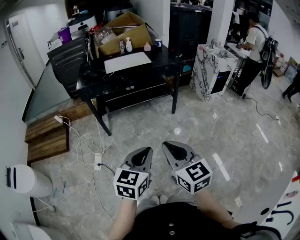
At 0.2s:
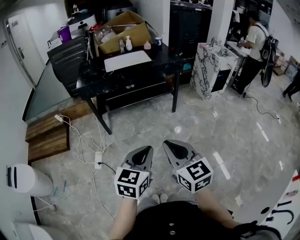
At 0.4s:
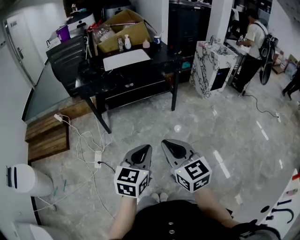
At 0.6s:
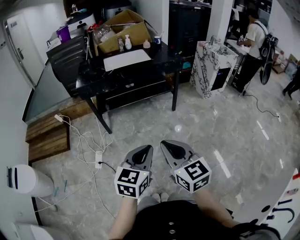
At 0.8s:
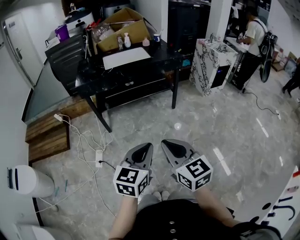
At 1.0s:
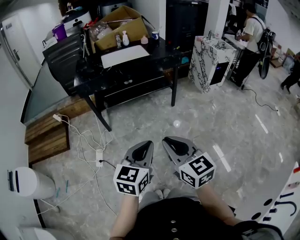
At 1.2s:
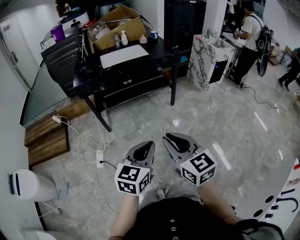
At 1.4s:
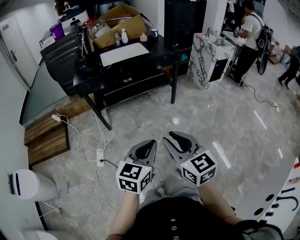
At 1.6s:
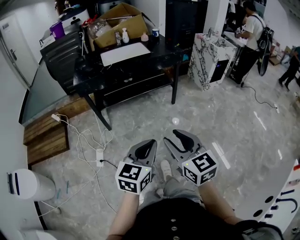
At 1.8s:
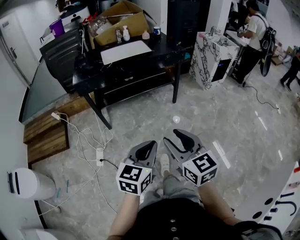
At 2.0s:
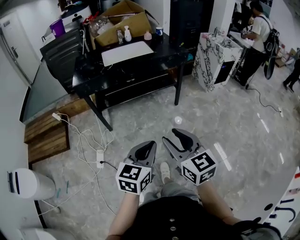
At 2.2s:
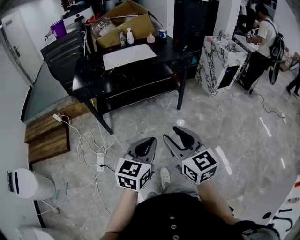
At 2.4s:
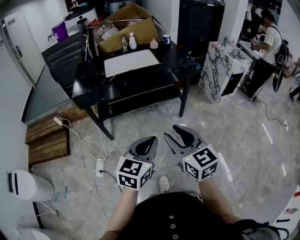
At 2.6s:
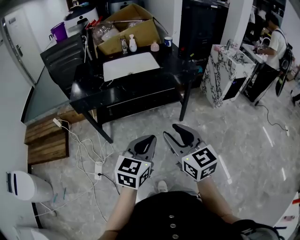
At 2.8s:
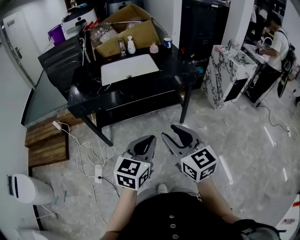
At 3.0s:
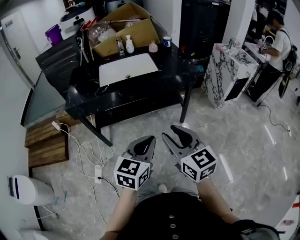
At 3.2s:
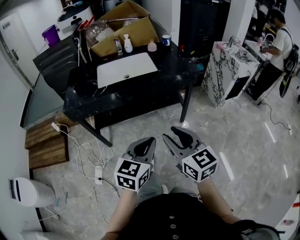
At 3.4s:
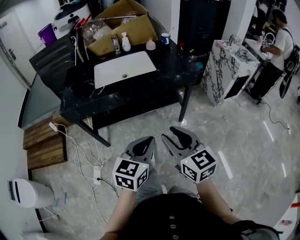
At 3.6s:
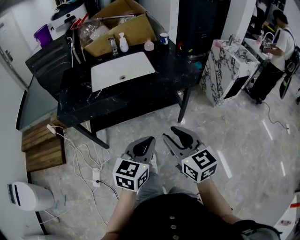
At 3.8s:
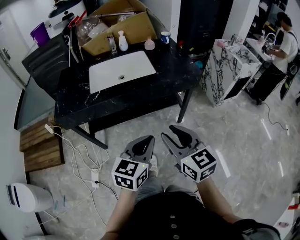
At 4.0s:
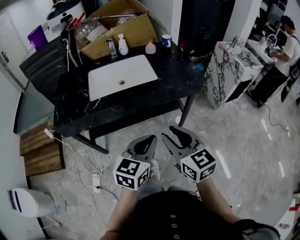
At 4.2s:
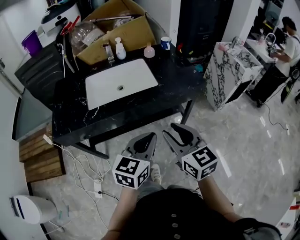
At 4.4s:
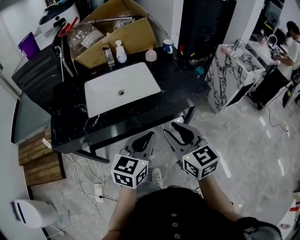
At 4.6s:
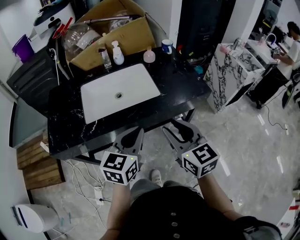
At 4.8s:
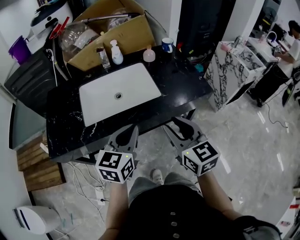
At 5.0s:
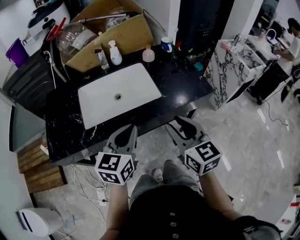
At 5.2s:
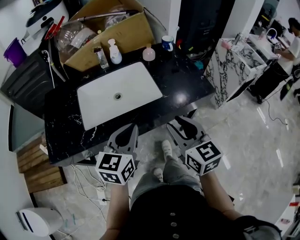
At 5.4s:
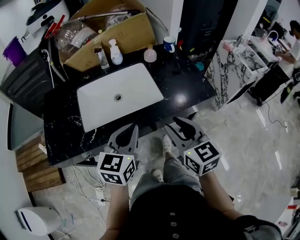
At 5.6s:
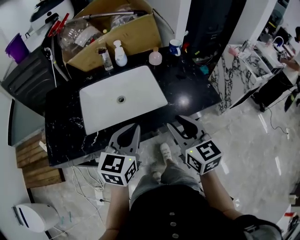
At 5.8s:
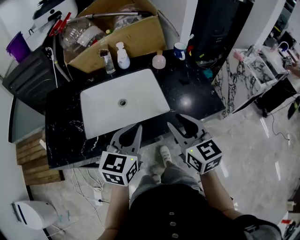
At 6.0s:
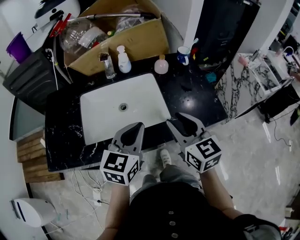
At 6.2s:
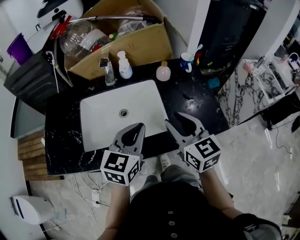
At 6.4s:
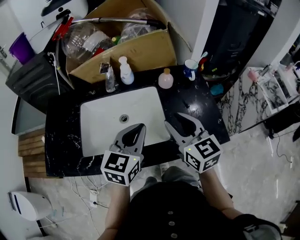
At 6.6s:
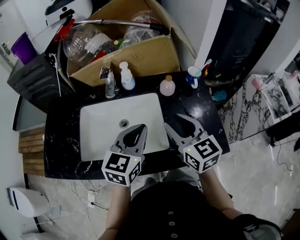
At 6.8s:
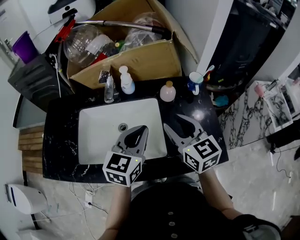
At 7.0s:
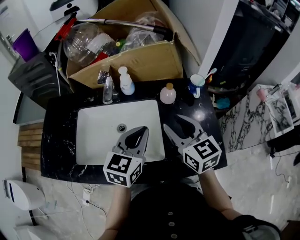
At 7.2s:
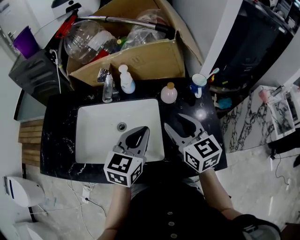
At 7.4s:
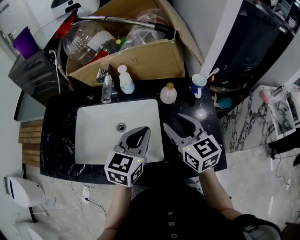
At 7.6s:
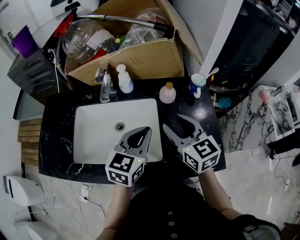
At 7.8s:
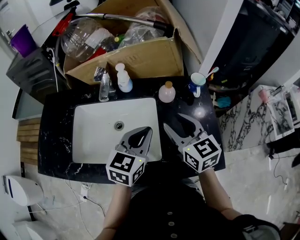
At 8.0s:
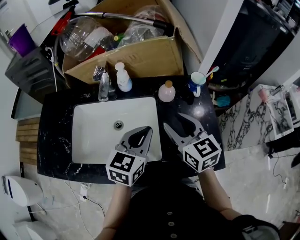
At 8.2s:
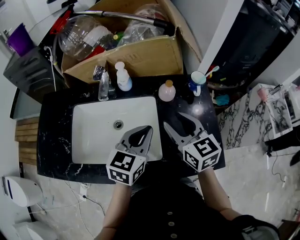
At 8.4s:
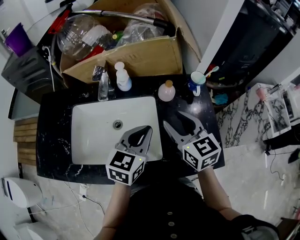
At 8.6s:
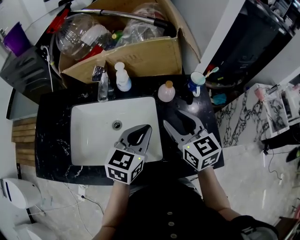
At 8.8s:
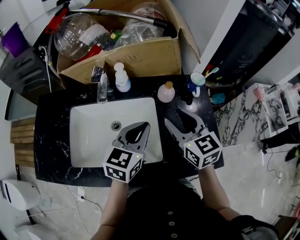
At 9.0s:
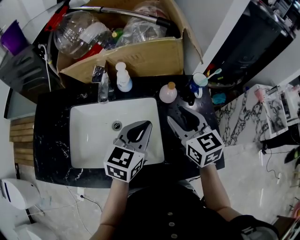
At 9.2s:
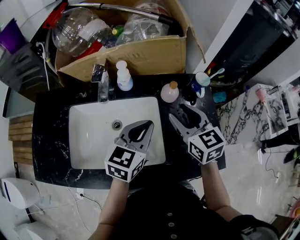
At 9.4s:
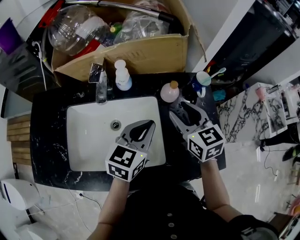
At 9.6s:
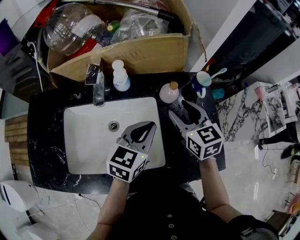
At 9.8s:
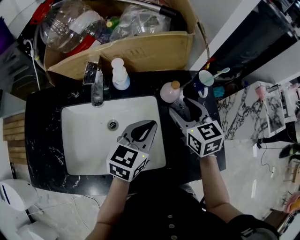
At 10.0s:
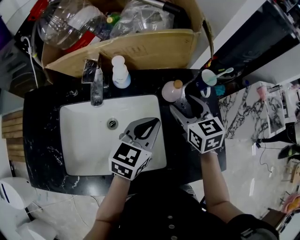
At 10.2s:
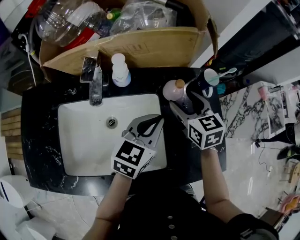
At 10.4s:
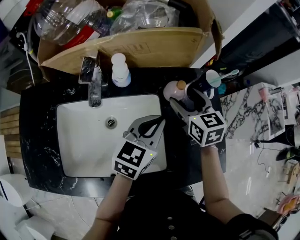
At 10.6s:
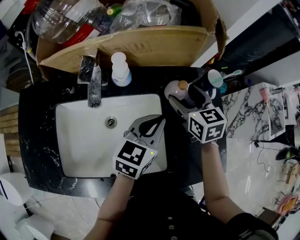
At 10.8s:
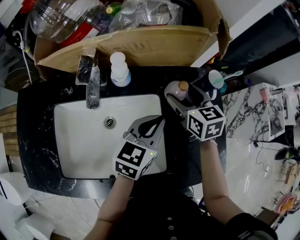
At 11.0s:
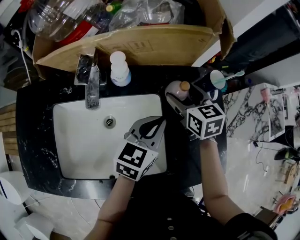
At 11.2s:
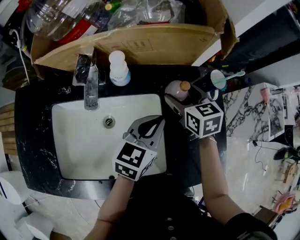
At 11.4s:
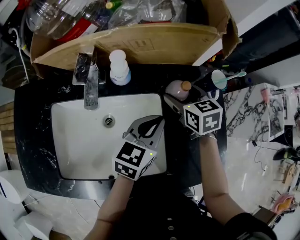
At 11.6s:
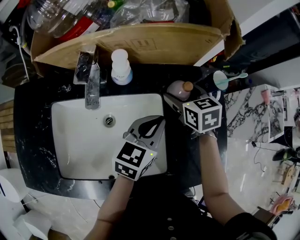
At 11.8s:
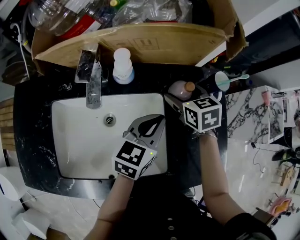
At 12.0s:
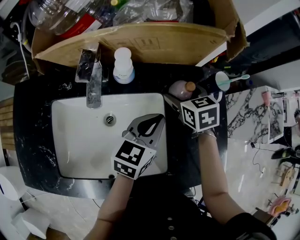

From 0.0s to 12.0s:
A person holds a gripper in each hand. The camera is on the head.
From 0.0s to 1.6s: The right gripper opens its fingers.
From 1.6s to 3.0s: The grippers both shift forward by approximately 30 cm.
From 3.0s to 4.4s: Both grippers travel together forward, some 25 cm.
From 4.4s to 6.0s: Both grippers move forward, about 20 cm.
From 6.0s to 7.6s: The right gripper travels forward by some 20 cm. The left gripper goes some 15 cm forward and to the right.
From 7.6s to 9.0s: The grippers move only a little.
From 9.0s to 10.4s: The right gripper travels forward and downward by some 15 cm, and opens up; the left gripper is displaced forward and downward by approximately 5 cm.
From 10.4s to 12.0s: The right gripper shifts about 5 cm downward.

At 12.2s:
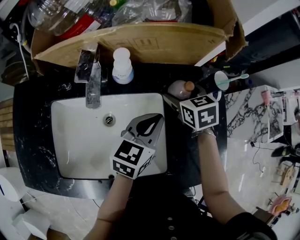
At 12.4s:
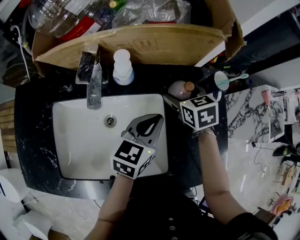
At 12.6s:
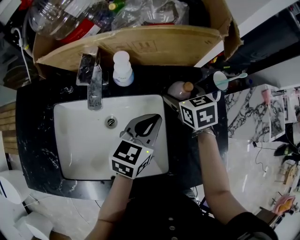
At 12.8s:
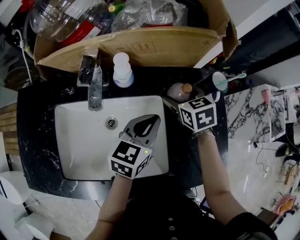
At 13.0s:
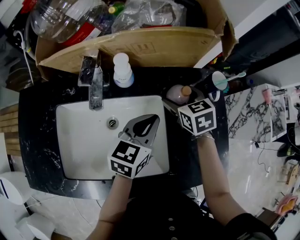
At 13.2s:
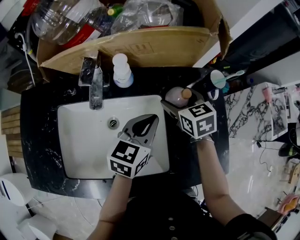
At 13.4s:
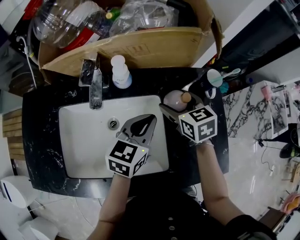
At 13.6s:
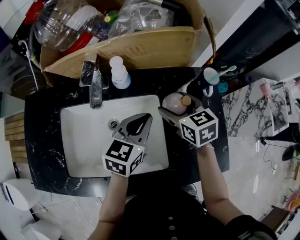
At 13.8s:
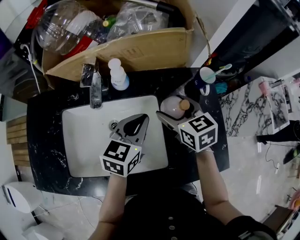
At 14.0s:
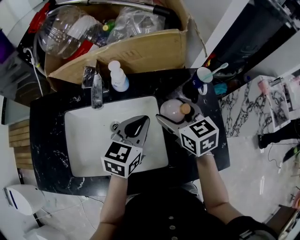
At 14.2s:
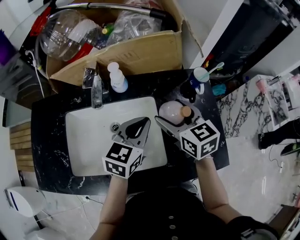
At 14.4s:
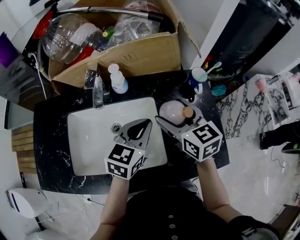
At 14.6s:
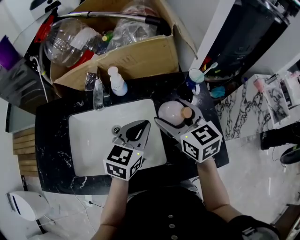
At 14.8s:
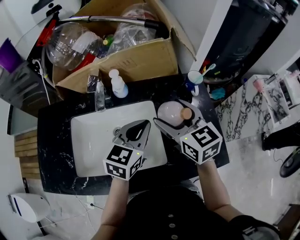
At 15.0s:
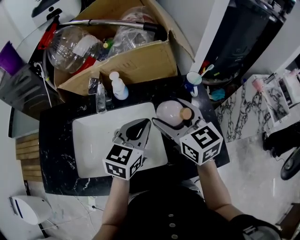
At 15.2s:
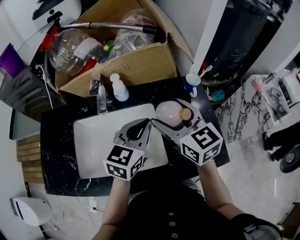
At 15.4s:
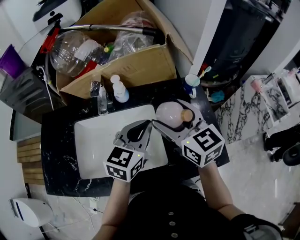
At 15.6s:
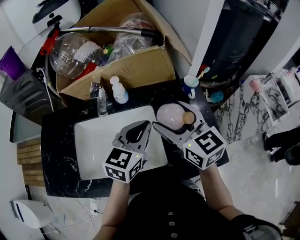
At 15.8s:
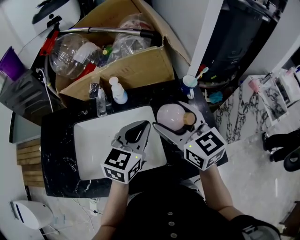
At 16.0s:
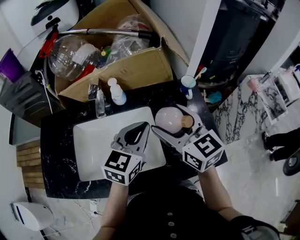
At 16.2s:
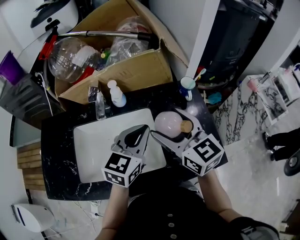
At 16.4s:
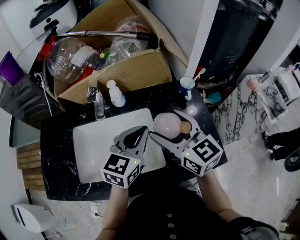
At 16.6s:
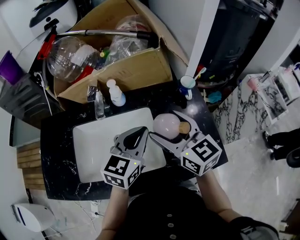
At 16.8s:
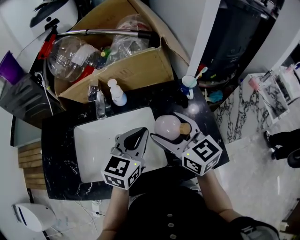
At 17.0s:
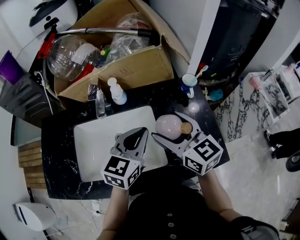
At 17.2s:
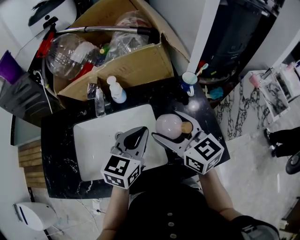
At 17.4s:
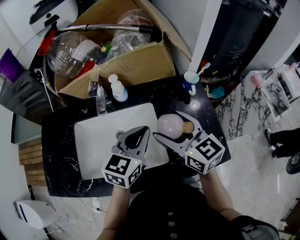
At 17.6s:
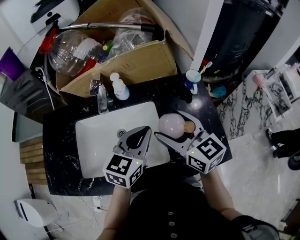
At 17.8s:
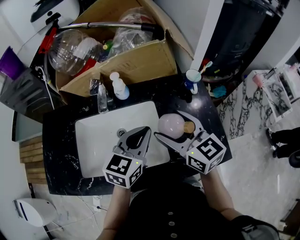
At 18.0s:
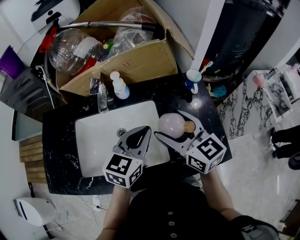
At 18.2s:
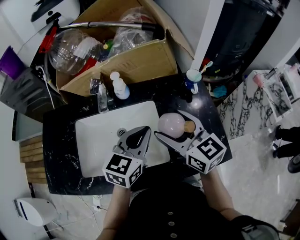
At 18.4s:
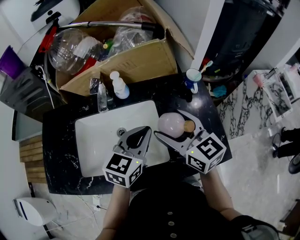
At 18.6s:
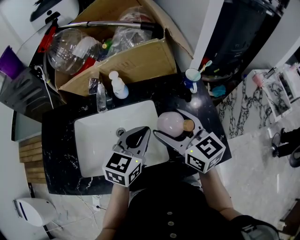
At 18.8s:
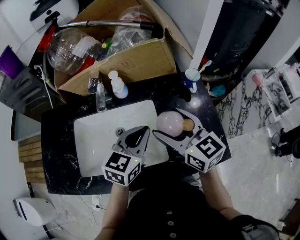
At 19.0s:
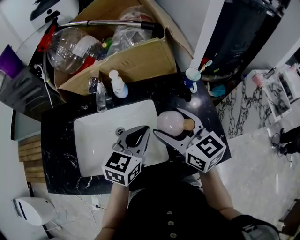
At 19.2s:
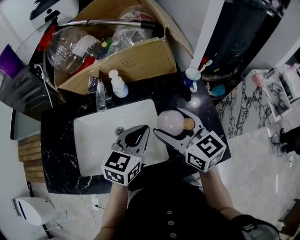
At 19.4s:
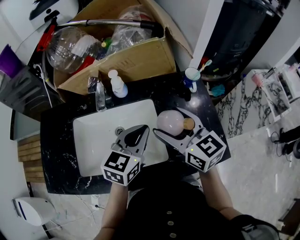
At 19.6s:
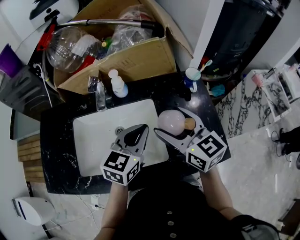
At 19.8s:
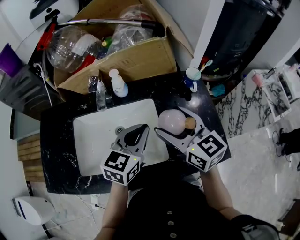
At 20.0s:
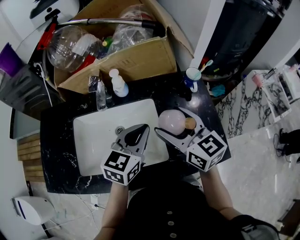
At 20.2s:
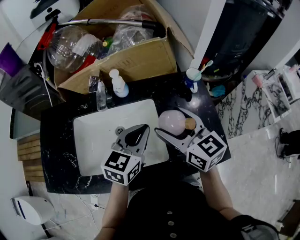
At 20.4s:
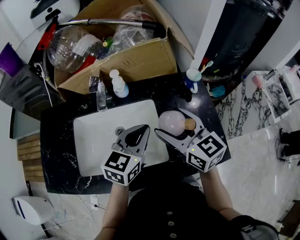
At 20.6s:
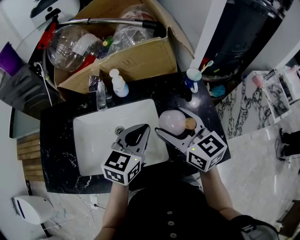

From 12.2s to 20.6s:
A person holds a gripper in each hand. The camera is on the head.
From 12.2s to 13.6s: The right gripper moves backward, roughly 5 cm.
From 13.6s to 15.0s: The left gripper travels upward by about 5 cm. The right gripper moves upward and backward, roughly 15 cm, and changes its angle by roughly 20 degrees.
From 15.0s to 17.8s: The grippers make only small movements.
From 17.8s to 20.6s: Both grippers stay put.

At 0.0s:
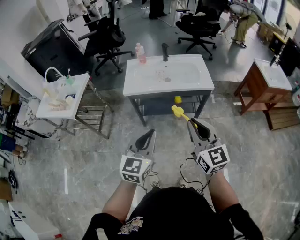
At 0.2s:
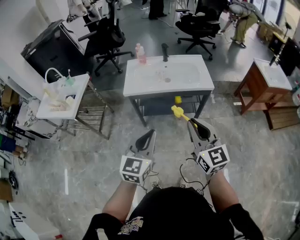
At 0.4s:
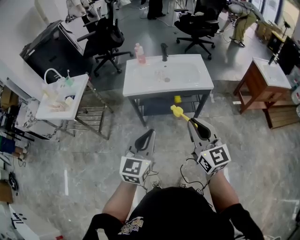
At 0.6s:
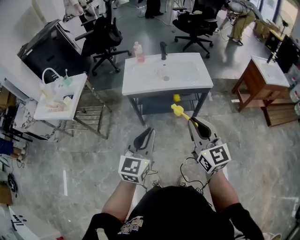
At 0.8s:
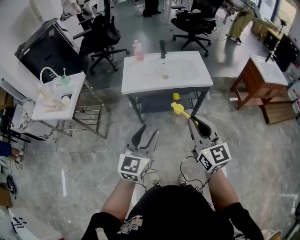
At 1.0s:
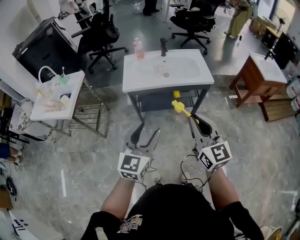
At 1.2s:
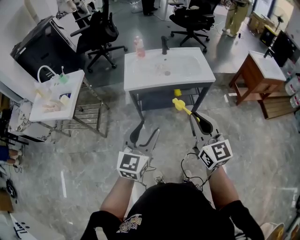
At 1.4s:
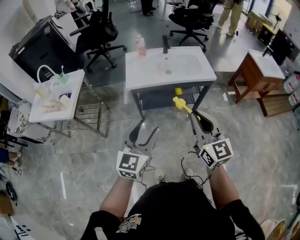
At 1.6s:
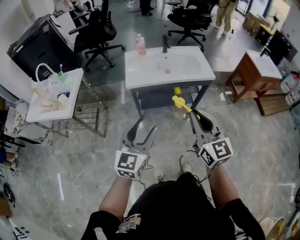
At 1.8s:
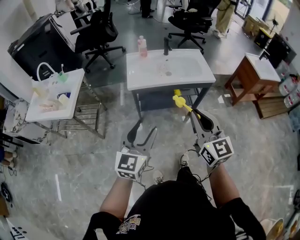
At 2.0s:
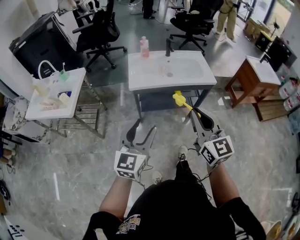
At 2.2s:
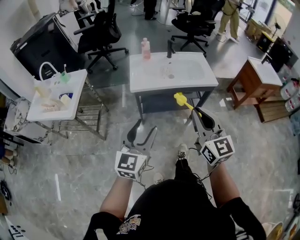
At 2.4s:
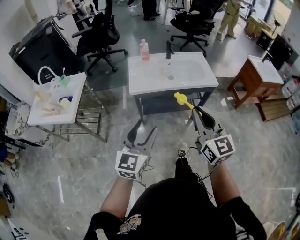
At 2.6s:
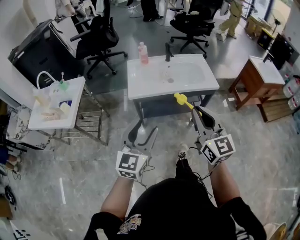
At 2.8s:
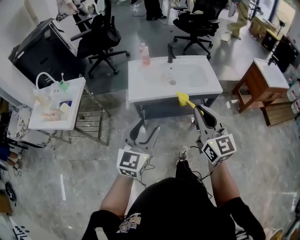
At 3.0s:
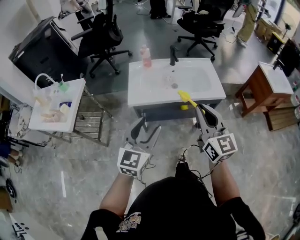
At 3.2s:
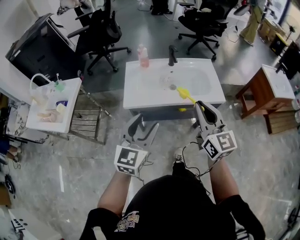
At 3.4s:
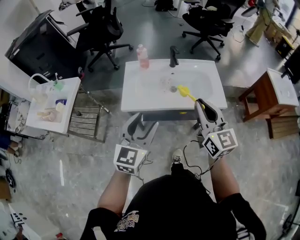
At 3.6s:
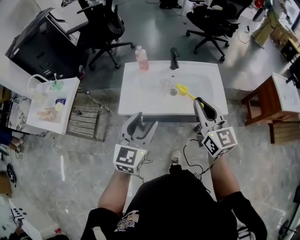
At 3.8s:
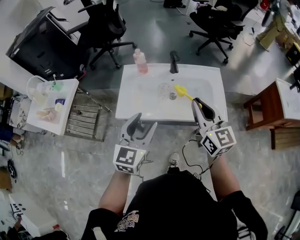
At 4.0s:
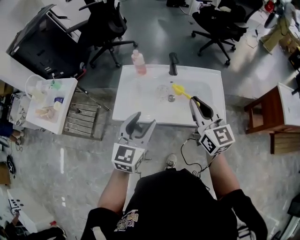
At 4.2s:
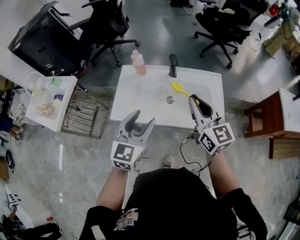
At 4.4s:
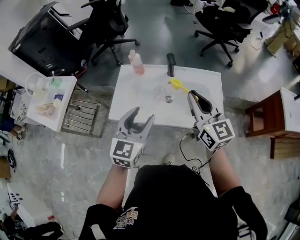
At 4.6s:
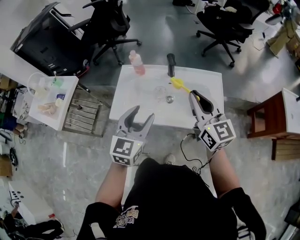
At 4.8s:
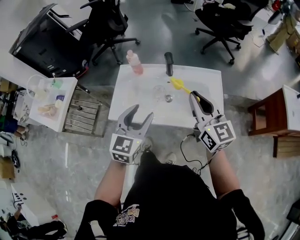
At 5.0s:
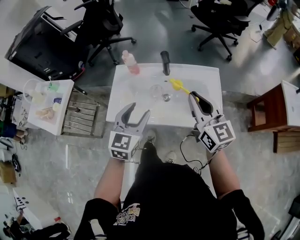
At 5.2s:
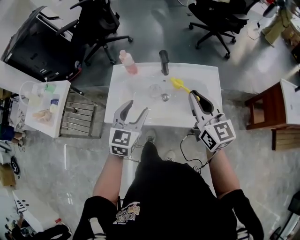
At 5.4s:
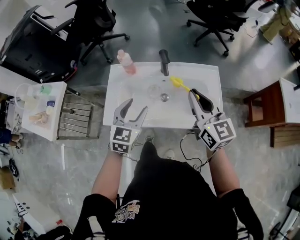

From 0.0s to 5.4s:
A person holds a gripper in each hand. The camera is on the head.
From 0.0s to 1.4s: The two grippers go about 10 cm to the left. The left gripper opens up.
From 1.4s to 2.8s: Both grippers travel together forward, some 10 cm.
From 2.8s to 4.0s: The right gripper moves forward, roughly 30 cm. Meanwhile the left gripper is displaced forward and to the right by approximately 30 cm.
From 4.0s to 5.4s: The right gripper heads forward, covering approximately 5 cm, while the left gripper is displaced forward and downward by some 15 cm.
